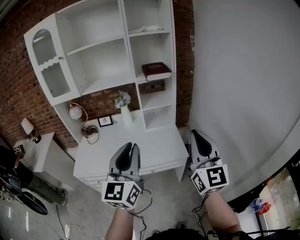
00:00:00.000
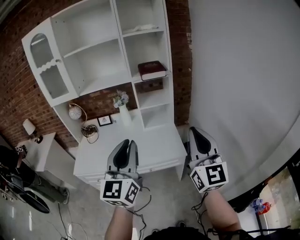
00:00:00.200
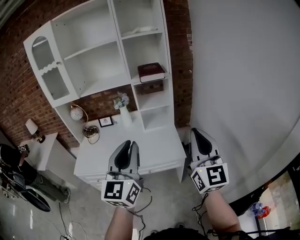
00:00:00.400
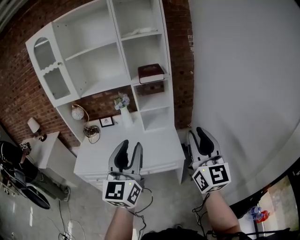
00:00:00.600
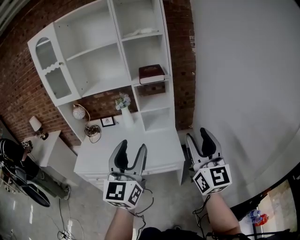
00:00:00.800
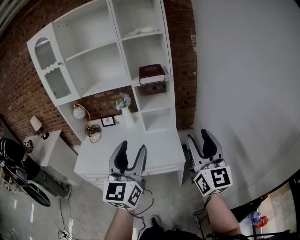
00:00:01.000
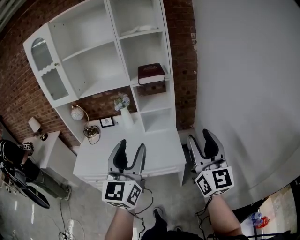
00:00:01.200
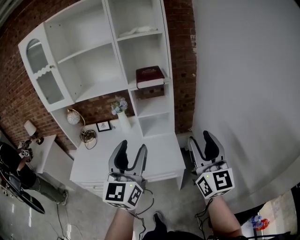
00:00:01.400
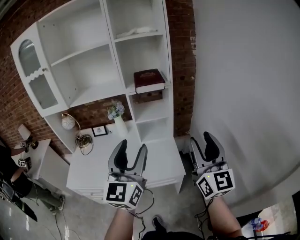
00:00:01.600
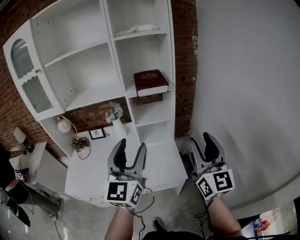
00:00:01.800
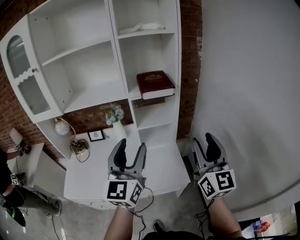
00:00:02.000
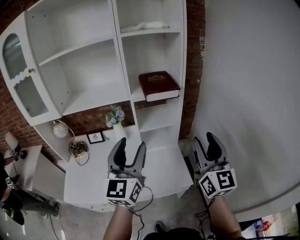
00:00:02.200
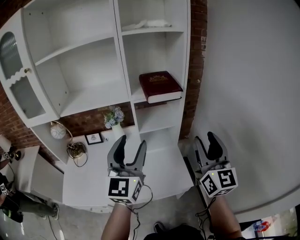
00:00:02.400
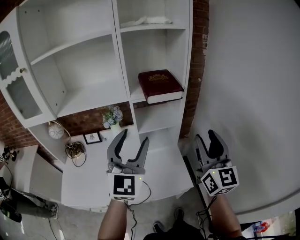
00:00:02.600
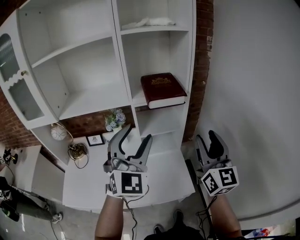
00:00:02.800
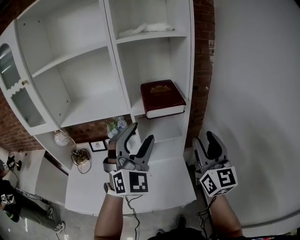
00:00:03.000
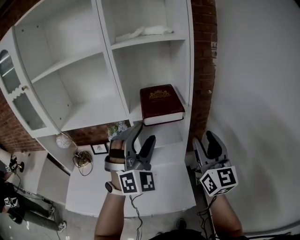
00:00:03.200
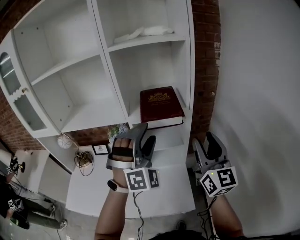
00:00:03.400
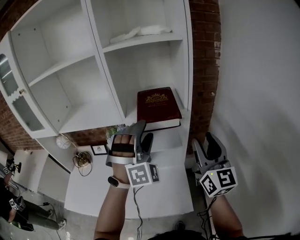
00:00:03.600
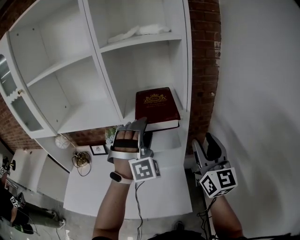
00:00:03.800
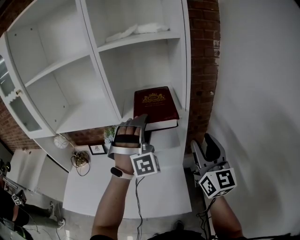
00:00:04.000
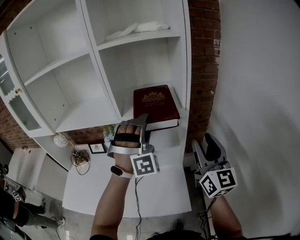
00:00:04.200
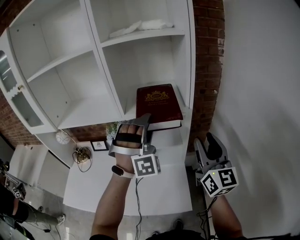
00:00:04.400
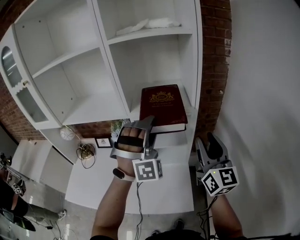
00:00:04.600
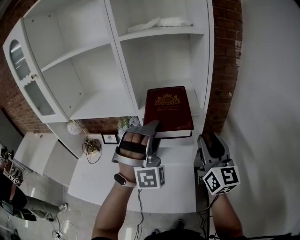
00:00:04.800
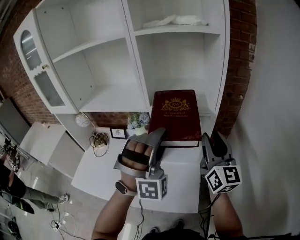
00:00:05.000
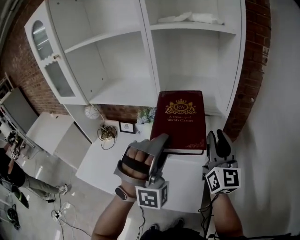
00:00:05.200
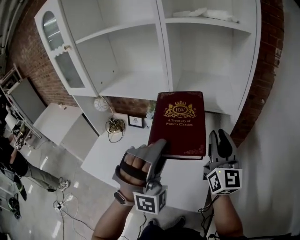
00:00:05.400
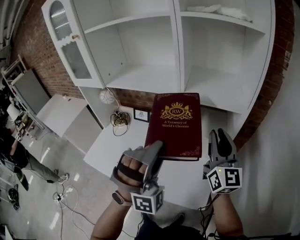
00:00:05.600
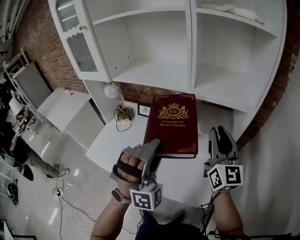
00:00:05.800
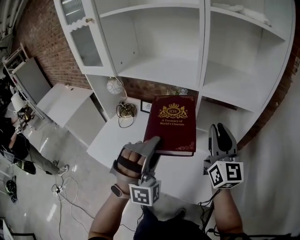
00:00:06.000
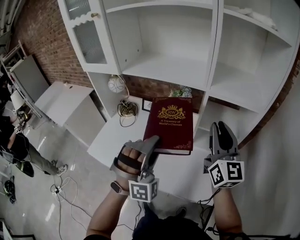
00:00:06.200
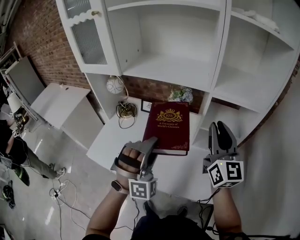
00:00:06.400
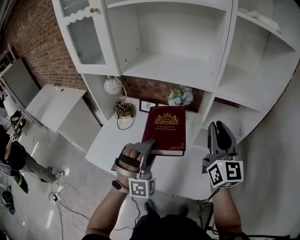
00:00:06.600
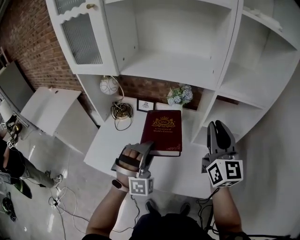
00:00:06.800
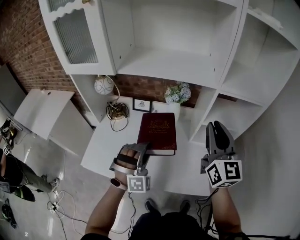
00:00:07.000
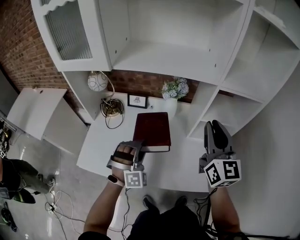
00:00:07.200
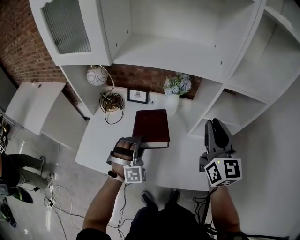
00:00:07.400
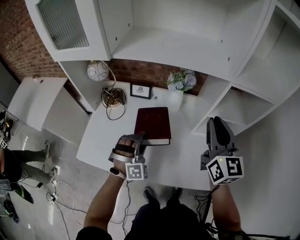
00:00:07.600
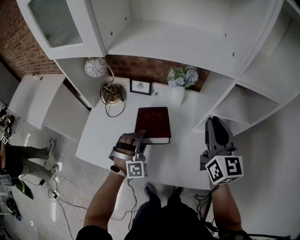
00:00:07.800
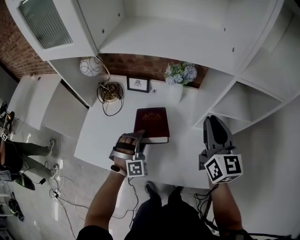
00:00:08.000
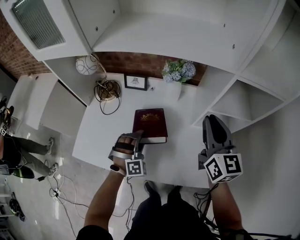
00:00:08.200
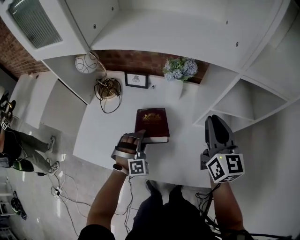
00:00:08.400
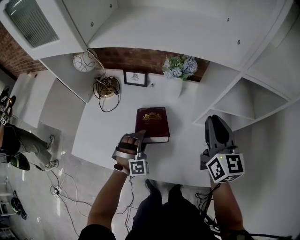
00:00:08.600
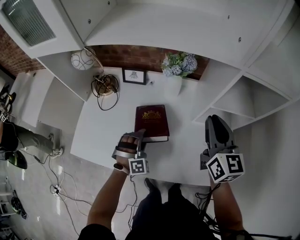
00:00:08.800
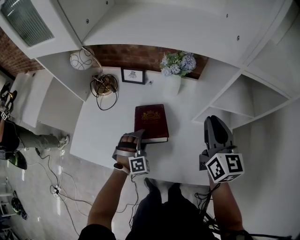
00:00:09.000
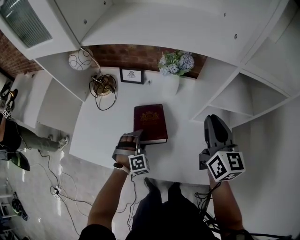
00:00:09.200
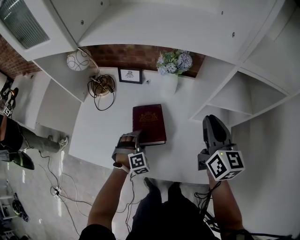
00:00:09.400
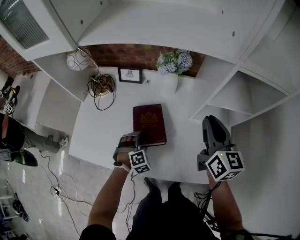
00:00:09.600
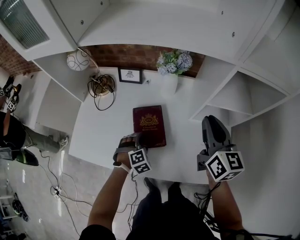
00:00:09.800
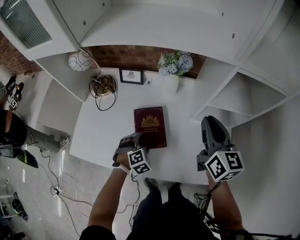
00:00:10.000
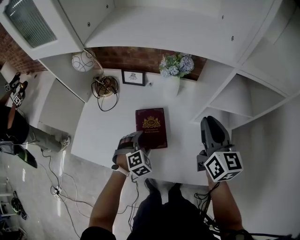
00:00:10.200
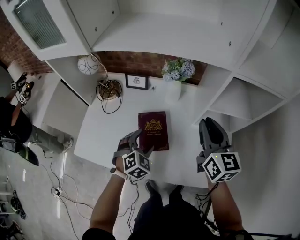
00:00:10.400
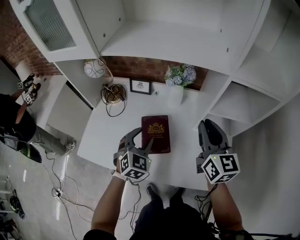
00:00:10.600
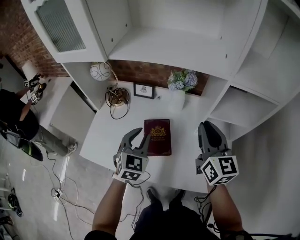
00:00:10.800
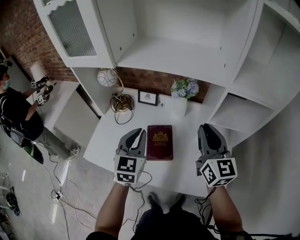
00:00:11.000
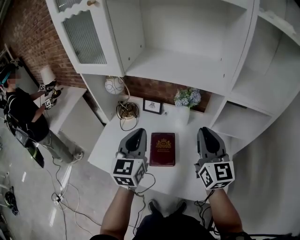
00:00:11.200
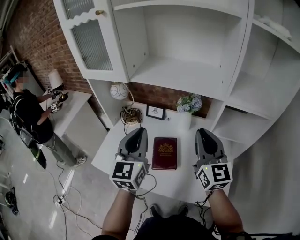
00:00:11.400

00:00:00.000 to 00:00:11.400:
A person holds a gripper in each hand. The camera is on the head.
00:00:00.000 to 00:00:01.400: Both grippers move to the right and forward, about 15 cm. The right gripper opens up, while the left gripper opens.
00:00:01.400 to 00:00:02.800: Both grippers travel together forward, about 25 cm. The left gripper turns by roughly 40 degrees.
00:00:02.800 to 00:00:04.200: The right gripper is displaced forward and to the right by approximately 15 cm, while the left gripper heads forward and to the right, covering roughly 20 cm, and rolls clockwise, seen from behind, by about 50 degrees.
00:00:04.200 to 00:00:05.600: The left gripper is displaced backward and to the left by some 20 cm, while the right gripper moves to the left, roughly 15 cm, and closes its fingers.
00:00:05.600 to 00:00:07.200: The right gripper is displaced to the left by approximately 20 cm, while the left gripper heads to the left, downward and forward, covering some 35 cm, and turns by approximately 30 degrees.
00:00:07.200 to 00:00:08.600: The left gripper travels downward by roughly 15 cm. Meanwhile the right gripper is displaced downward and forward by roughly 15 cm.
00:00:08.600 to 00:00:10.000: The left gripper shifts by roughly 5 cm, turns by roughly 40 degrees, and opens its fingers.
00:00:10.000 to 00:00:11.400: The left gripper goes about 40 cm upward, angles its fingers upward, by about 60 degrees, and closes up. The right gripper shifts some 15 cm upward and to the left, and rotates some 30 degrees.

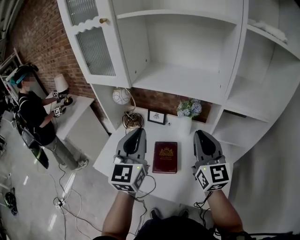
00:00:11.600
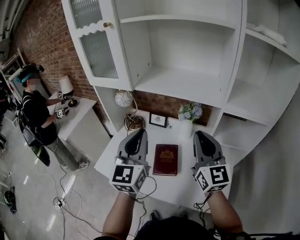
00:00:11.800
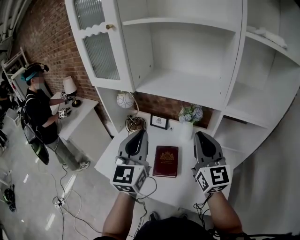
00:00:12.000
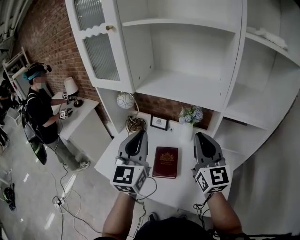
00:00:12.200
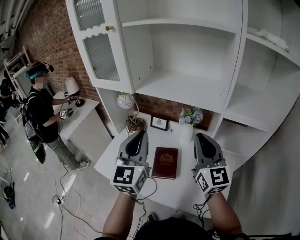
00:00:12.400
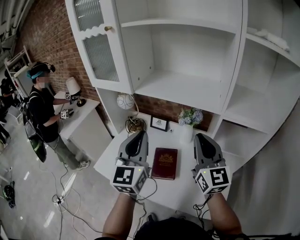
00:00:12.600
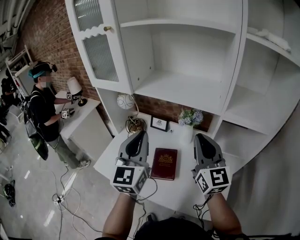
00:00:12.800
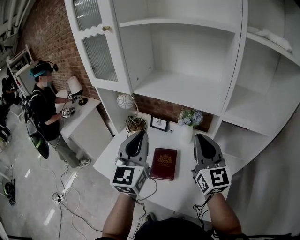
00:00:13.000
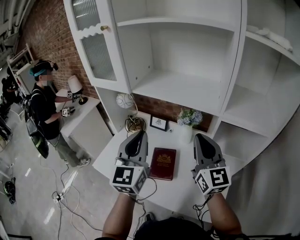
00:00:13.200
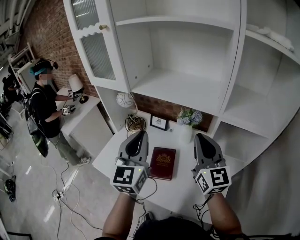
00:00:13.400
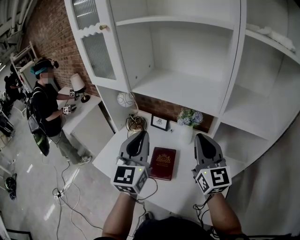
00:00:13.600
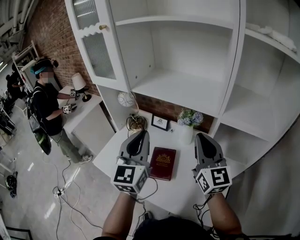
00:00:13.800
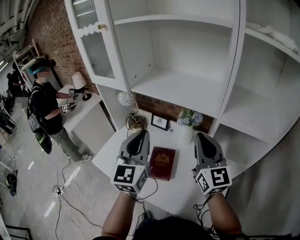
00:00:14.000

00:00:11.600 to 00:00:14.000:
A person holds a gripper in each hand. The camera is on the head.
00:00:11.600 to 00:00:12.800: The grippers stay close to where they were, moving slightly.
00:00:12.800 to 00:00:14.000: The grippers move only a little.

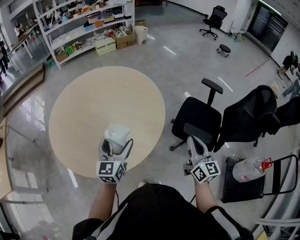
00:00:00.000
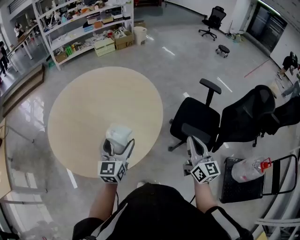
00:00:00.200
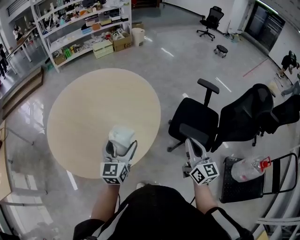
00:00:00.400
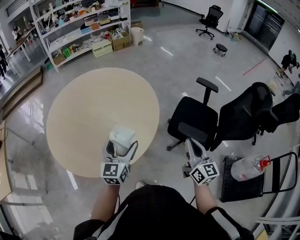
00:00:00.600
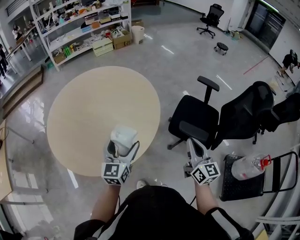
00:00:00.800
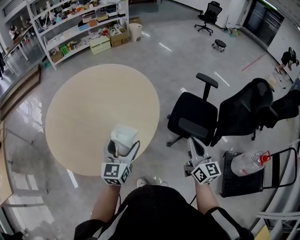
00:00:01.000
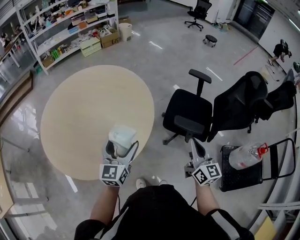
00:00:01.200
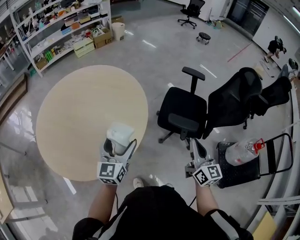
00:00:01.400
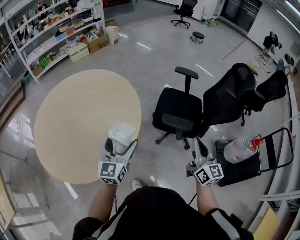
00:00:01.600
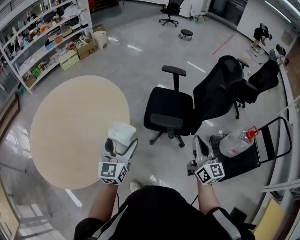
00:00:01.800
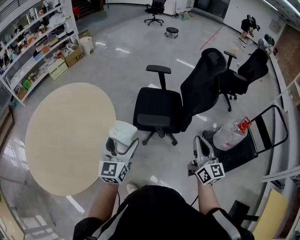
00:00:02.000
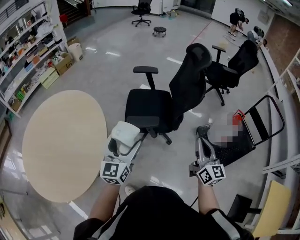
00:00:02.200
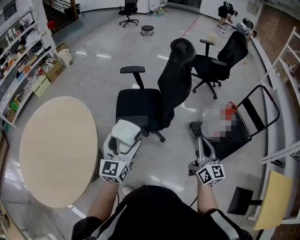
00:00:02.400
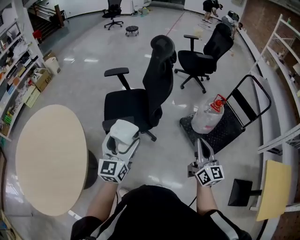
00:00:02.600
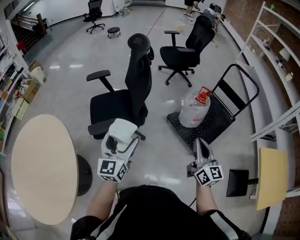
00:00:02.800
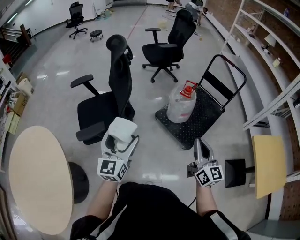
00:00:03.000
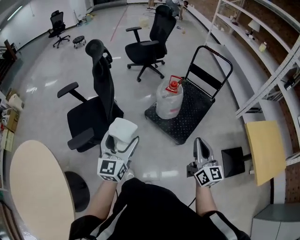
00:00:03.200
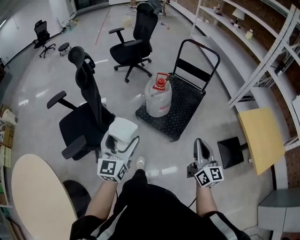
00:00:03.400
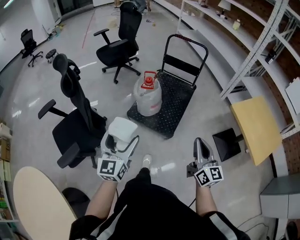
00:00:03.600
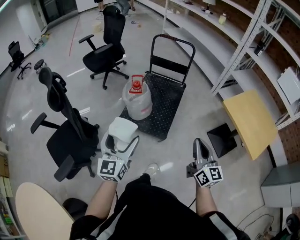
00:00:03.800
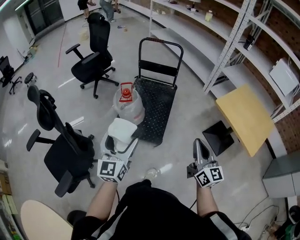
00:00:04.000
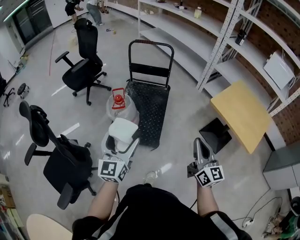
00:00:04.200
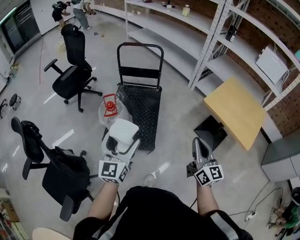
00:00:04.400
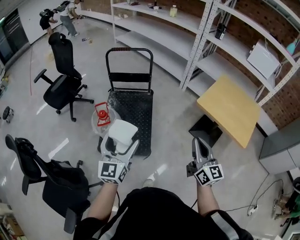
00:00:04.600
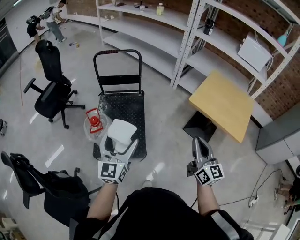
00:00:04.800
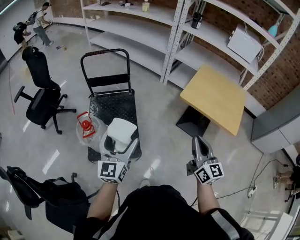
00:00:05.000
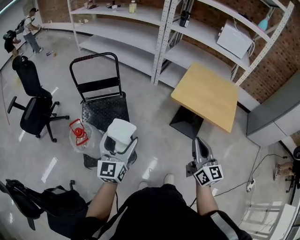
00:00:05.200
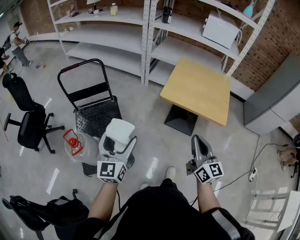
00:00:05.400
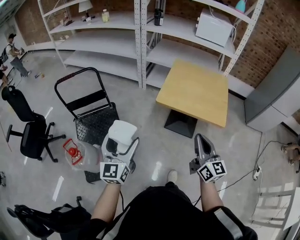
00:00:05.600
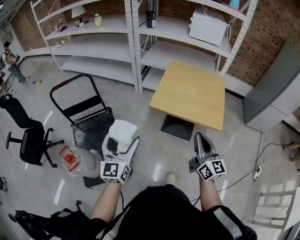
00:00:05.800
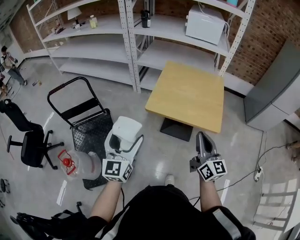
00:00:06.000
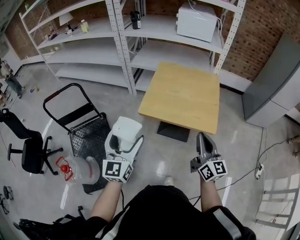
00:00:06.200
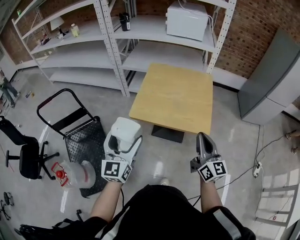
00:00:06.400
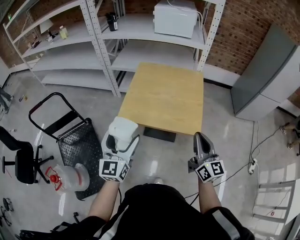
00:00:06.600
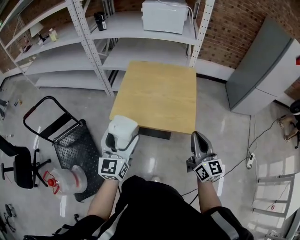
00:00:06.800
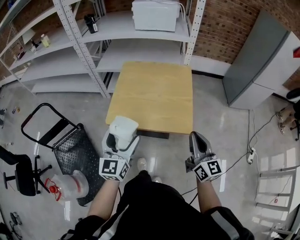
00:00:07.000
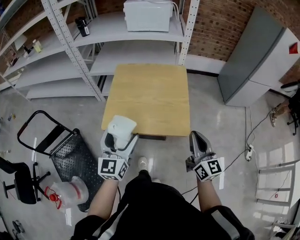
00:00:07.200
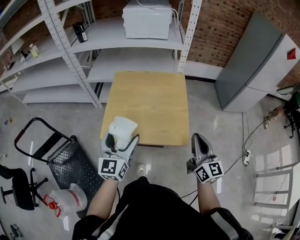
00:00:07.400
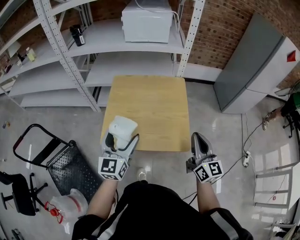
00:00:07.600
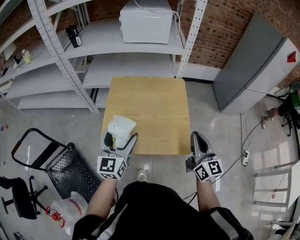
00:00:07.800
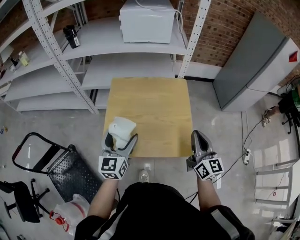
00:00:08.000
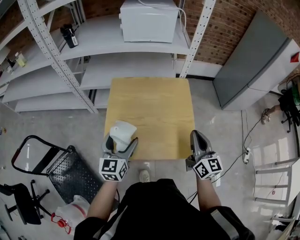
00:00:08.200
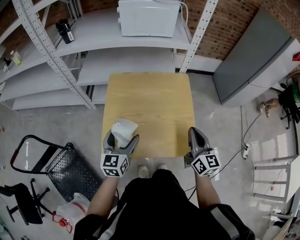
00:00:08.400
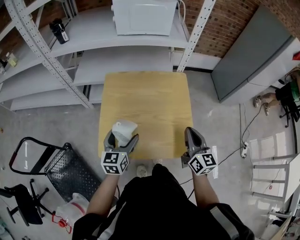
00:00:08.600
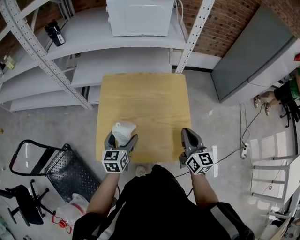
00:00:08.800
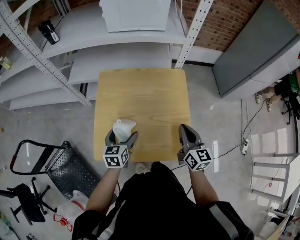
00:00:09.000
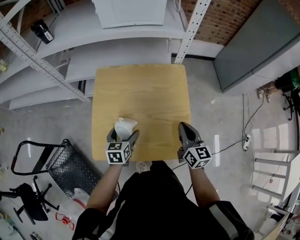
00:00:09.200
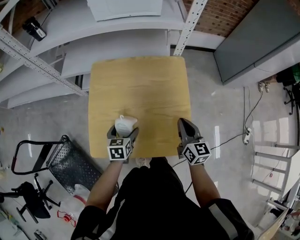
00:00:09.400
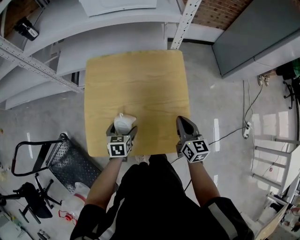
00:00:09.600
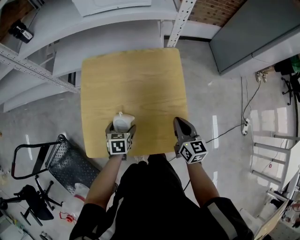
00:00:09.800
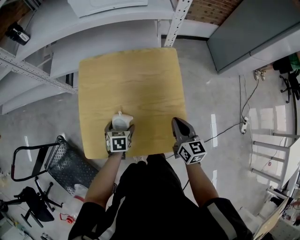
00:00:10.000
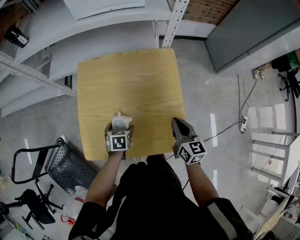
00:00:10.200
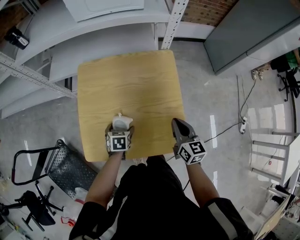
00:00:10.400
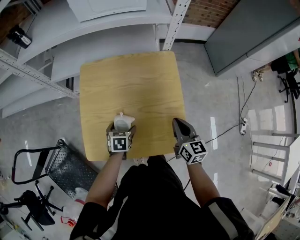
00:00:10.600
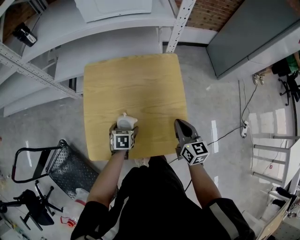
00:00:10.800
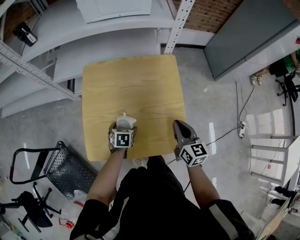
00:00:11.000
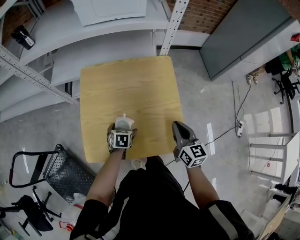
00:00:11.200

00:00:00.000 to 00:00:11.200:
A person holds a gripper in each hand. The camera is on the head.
00:00:00.000 to 00:00:01.600: The left gripper is displaced to the right by some 10 cm. The right gripper heads to the right and backward, covering approximately 15 cm.
00:00:01.600 to 00:00:03.200: The two grippers travel together, about 50 cm. The left gripper swivels approximately 50 degrees; the right gripper rotates approximately 50 degrees.
00:00:03.200 to 00:00:04.800: The right gripper shifts by approximately 25 cm, and turns by roughly 40 degrees. Meanwhile the left gripper moves approximately 40 cm, and changes its angle by some 40 degrees.
00:00:04.800 to 00:00:06.400: The right gripper changes place by approximately 35 cm, and changes its angle by approximately 30 degrees, while the left gripper ends up some 40 cm from where it was, and turns by approximately 30 degrees.
00:00:06.400 to 00:00:08.000: Both grippers travel together forward, approximately 25 cm.
00:00:08.000 to 00:00:09.600: The left gripper goes roughly 25 cm downward, and angles its fingers downward, by about 50 degrees, while the right gripper is displaced downward and forward by about 20 cm, and turns by approximately 20 degrees.
00:00:09.600 to 00:00:11.200: The left gripper changes place by about 5 cm.
